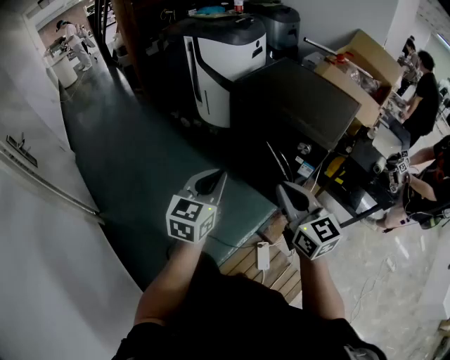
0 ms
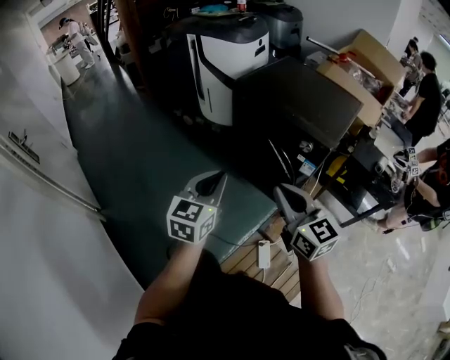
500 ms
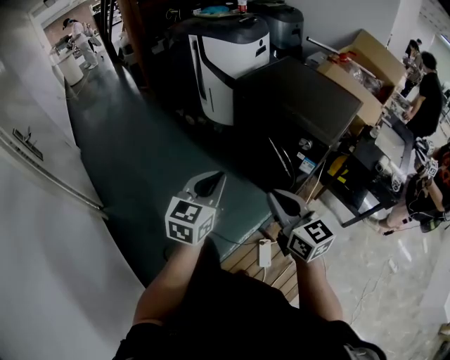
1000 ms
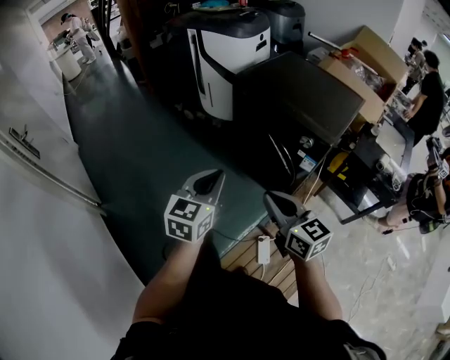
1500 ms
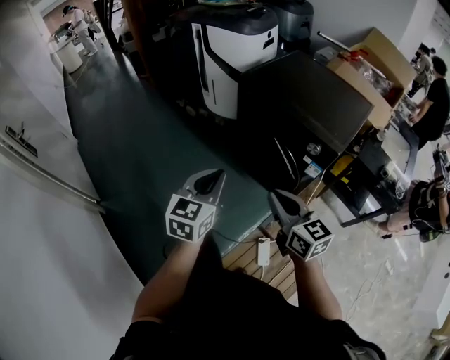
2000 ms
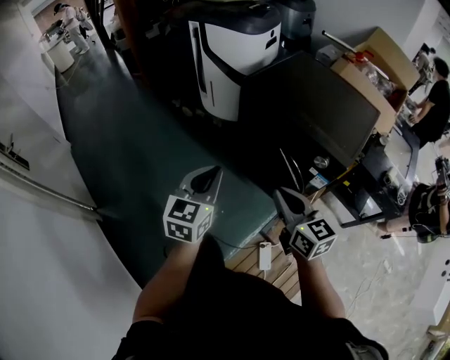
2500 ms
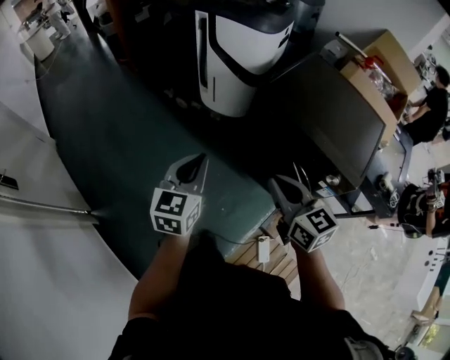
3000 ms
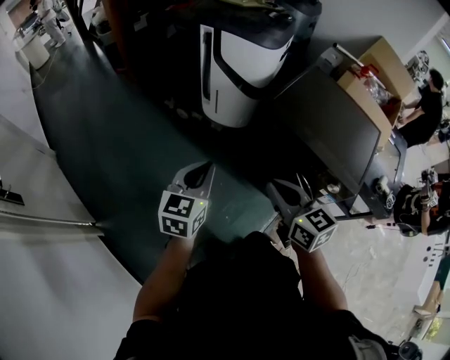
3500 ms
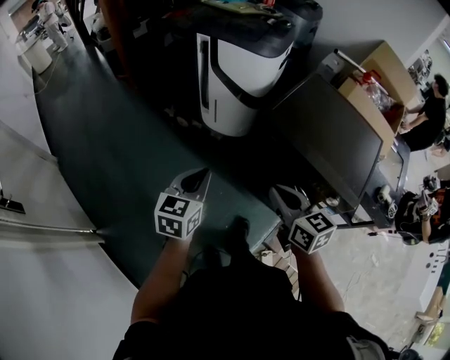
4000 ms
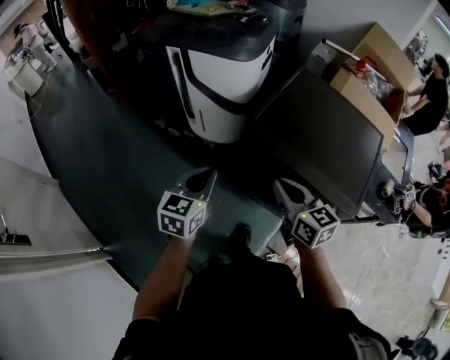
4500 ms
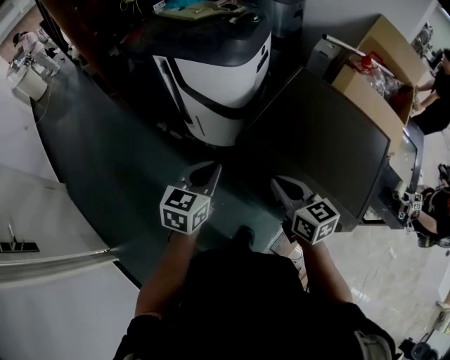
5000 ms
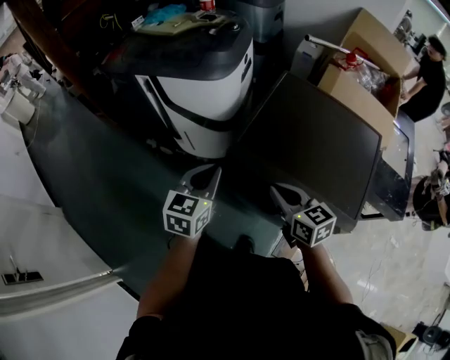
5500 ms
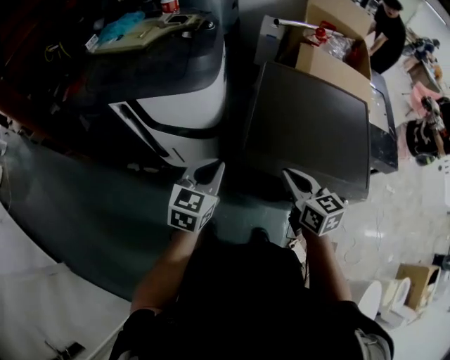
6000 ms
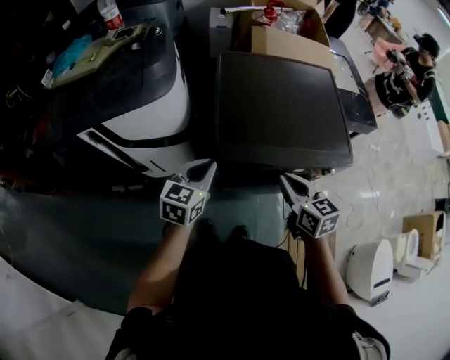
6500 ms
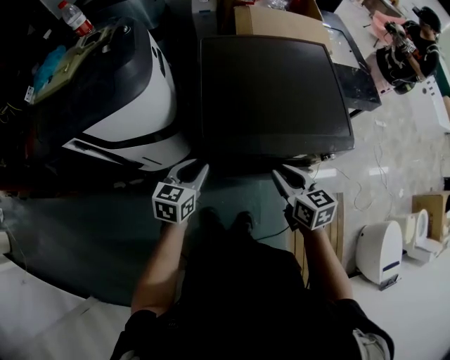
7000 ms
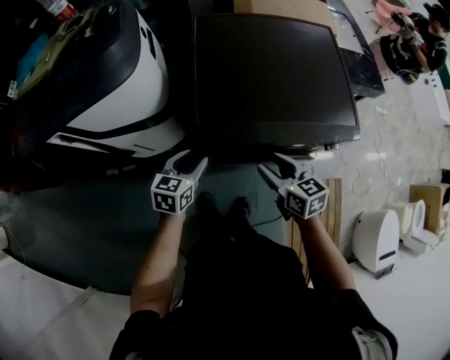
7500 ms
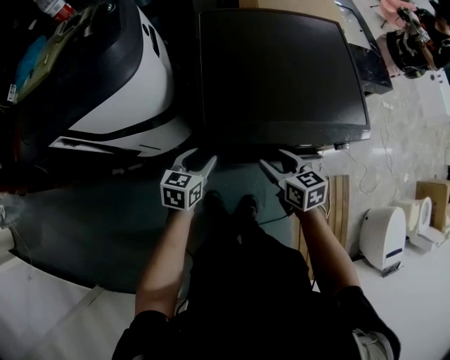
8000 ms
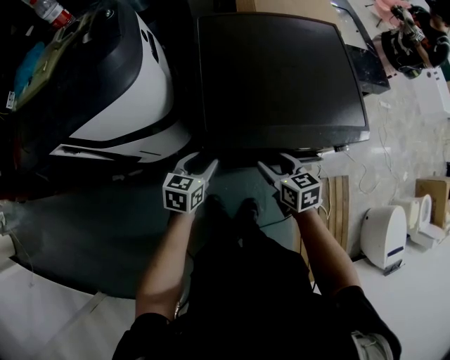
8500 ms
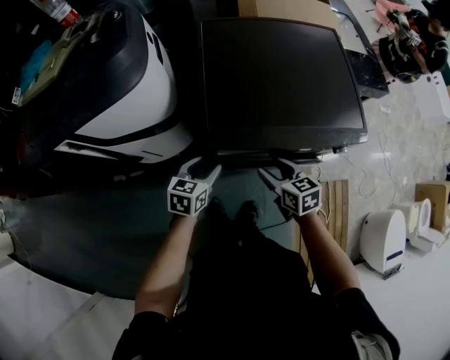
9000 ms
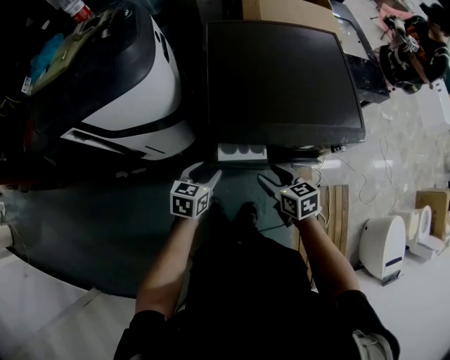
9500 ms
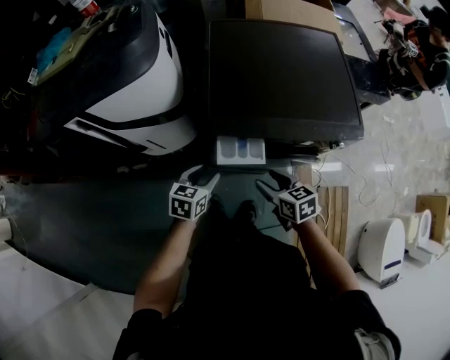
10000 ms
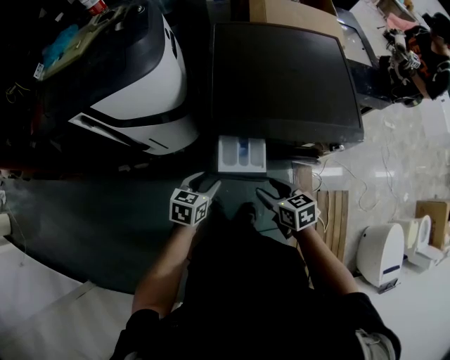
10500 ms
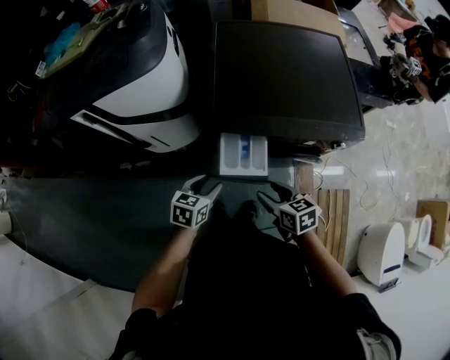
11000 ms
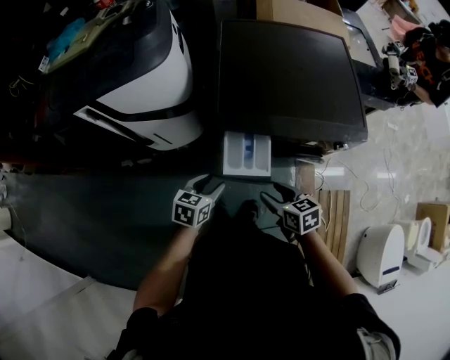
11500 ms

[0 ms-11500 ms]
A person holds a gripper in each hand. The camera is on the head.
0 ms to 2000 ms: The right gripper goes roughly 5 cm downward.
2000 ms to 4000 ms: Both grippers move forward and to the left, about 35 cm.
4000 ms to 6000 ms: The left gripper ends up some 35 cm from where it was, and rotates approximately 30 degrees. Meanwhile the right gripper changes place by about 30 cm, and changes its angle by some 30 degrees.
6000 ms to 7500 ms: The left gripper goes approximately 15 cm downward, turns by approximately 20 degrees, and opens. The right gripper is displaced downward and to the right by roughly 15 cm, and opens up.
7500 ms to 9500 ms: The left gripper ends up approximately 5 cm from where it was. The right gripper ends up some 5 cm from where it was.
9500 ms to 11500 ms: Both grippers move backward, about 10 cm.

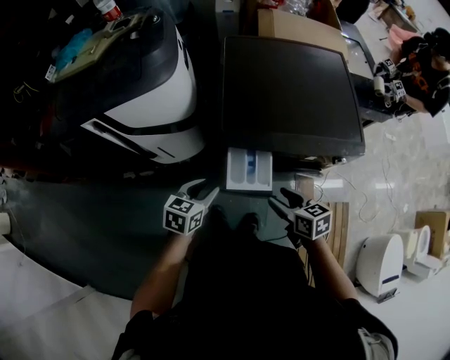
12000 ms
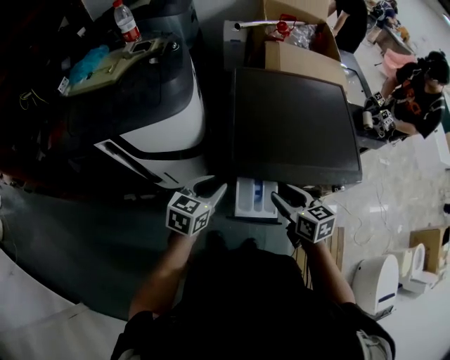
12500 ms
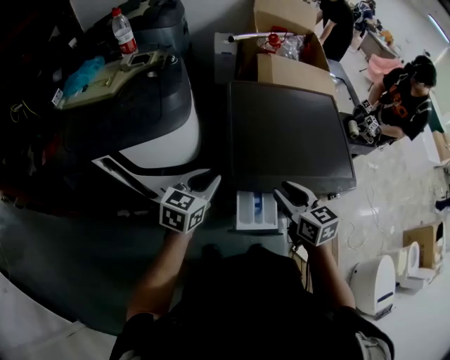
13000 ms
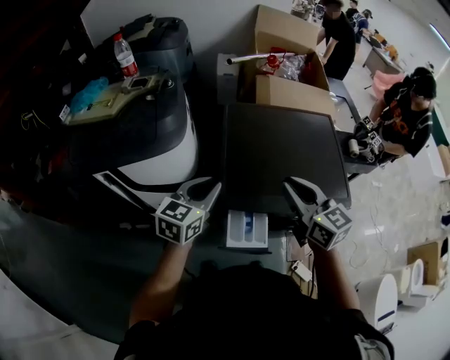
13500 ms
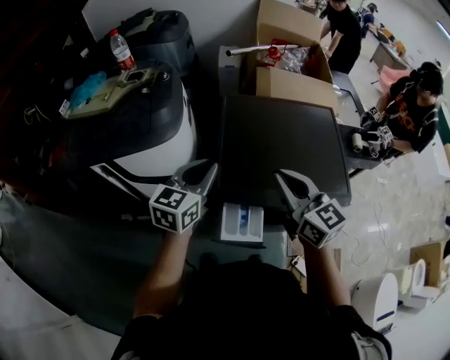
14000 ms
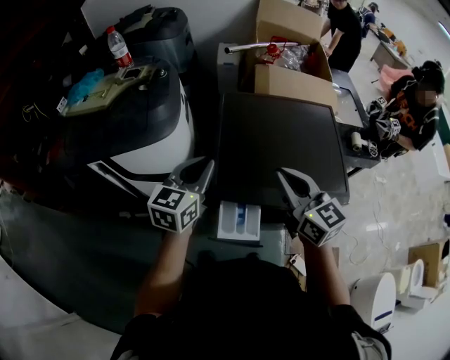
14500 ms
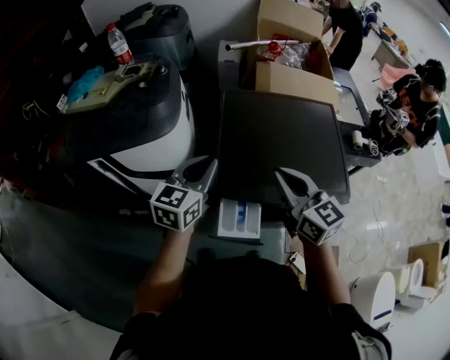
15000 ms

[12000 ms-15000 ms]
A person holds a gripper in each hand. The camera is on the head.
12000 ms to 13500 ms: Both grippers travel together upward and forward, approximately 30 cm. The right gripper swivels some 40 degrees, and closes up; the left gripper swivels about 20 degrees, and closes up.
13500 ms to 15000 ms: There are only small adjustments of the grippers.

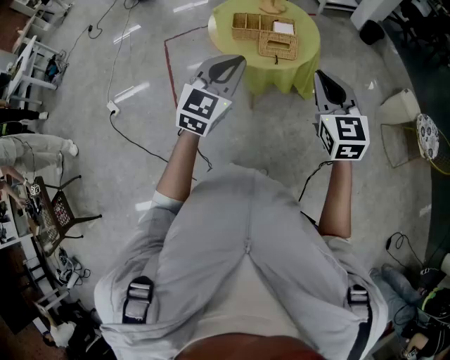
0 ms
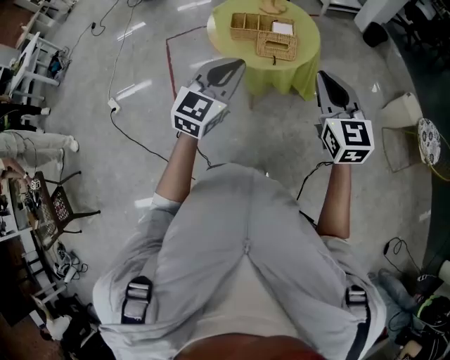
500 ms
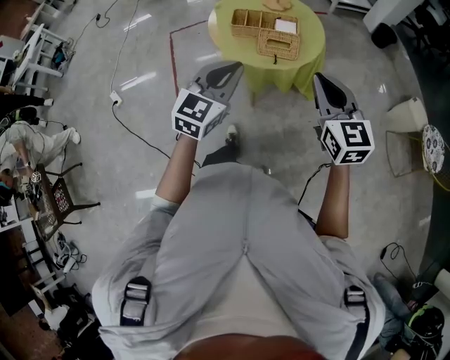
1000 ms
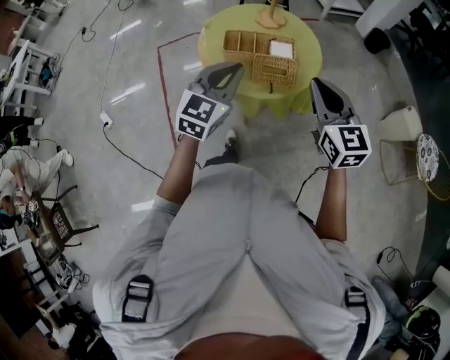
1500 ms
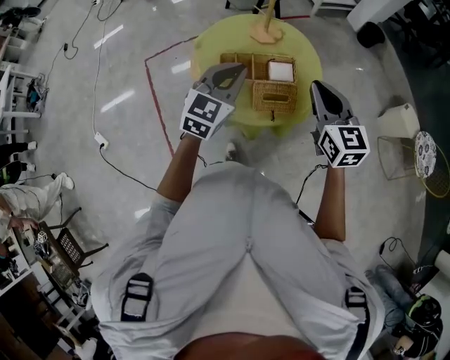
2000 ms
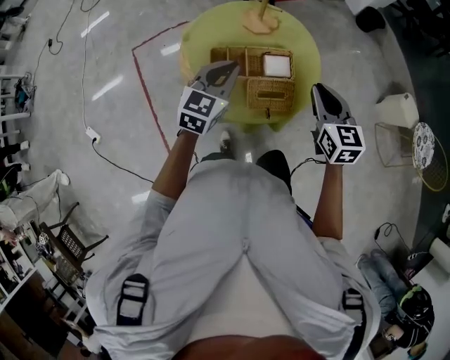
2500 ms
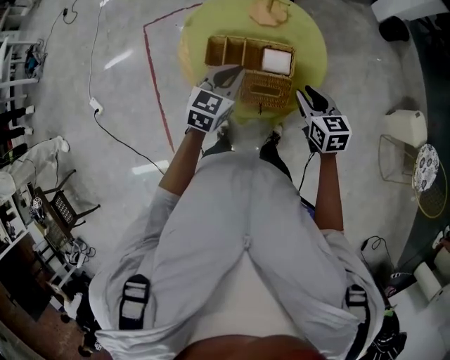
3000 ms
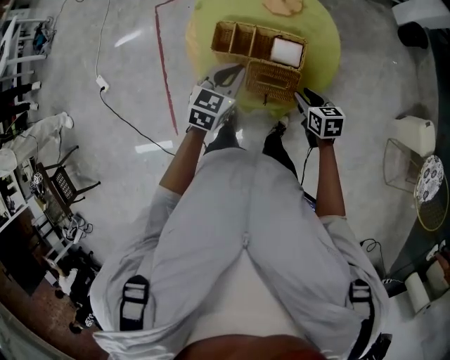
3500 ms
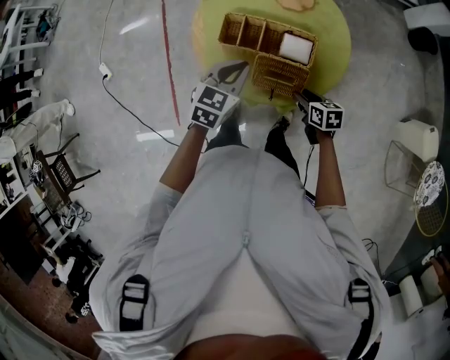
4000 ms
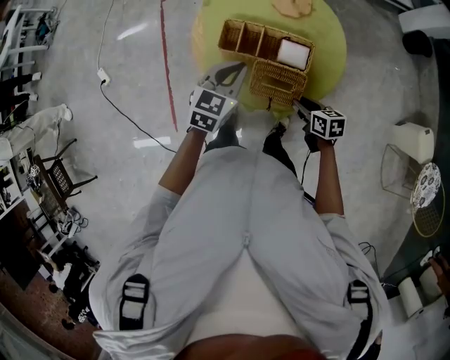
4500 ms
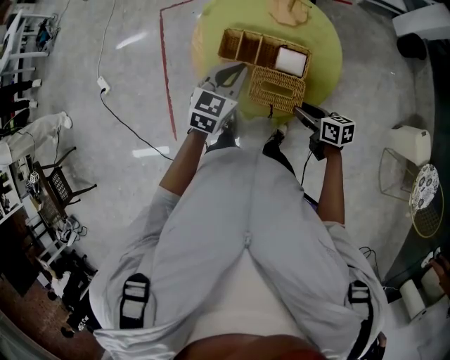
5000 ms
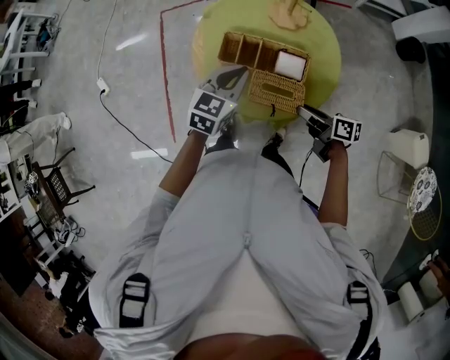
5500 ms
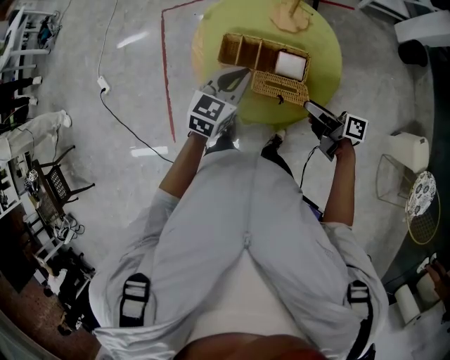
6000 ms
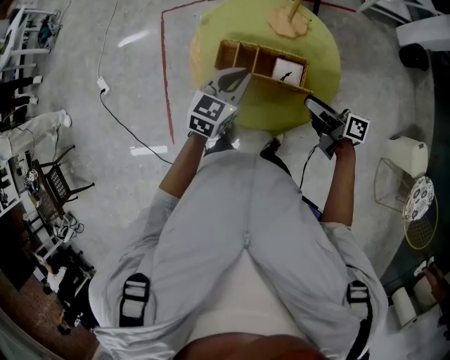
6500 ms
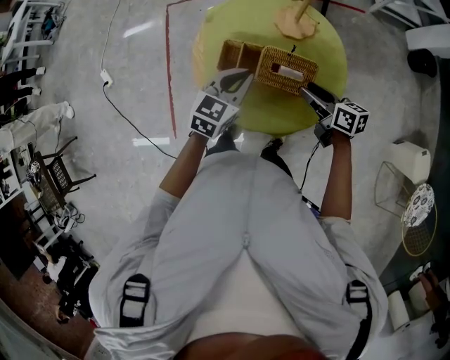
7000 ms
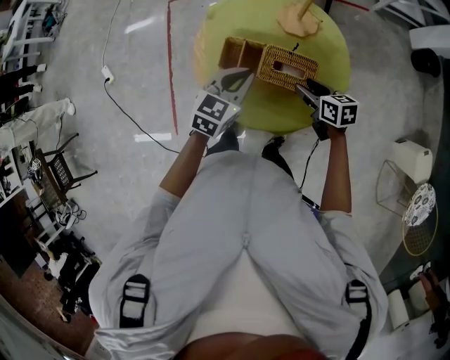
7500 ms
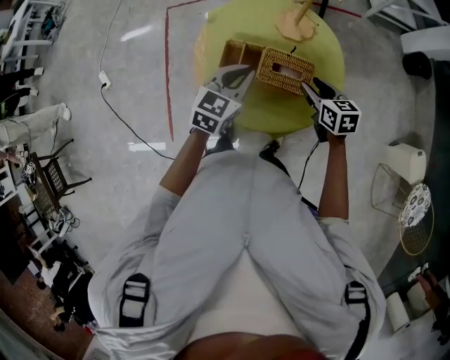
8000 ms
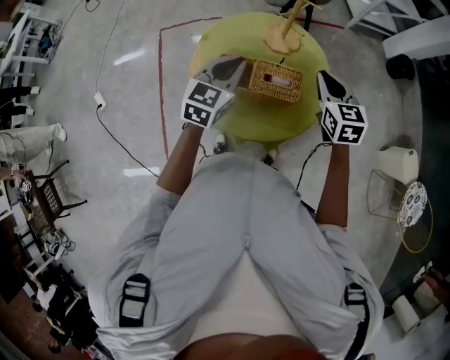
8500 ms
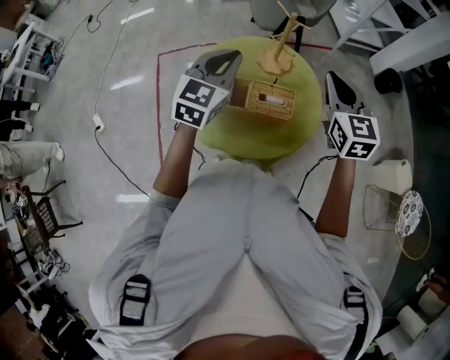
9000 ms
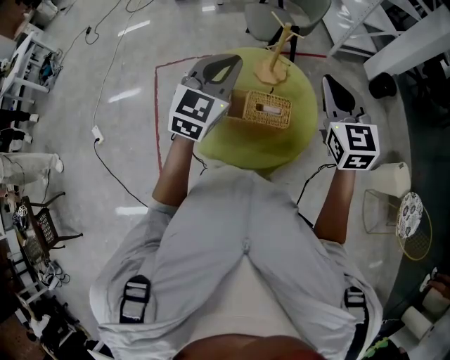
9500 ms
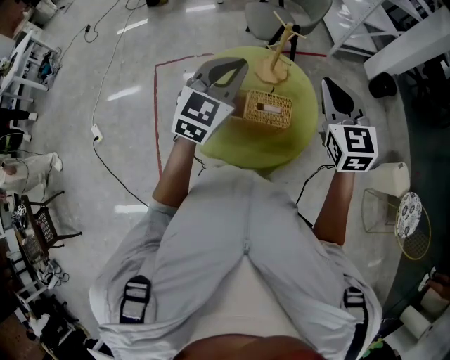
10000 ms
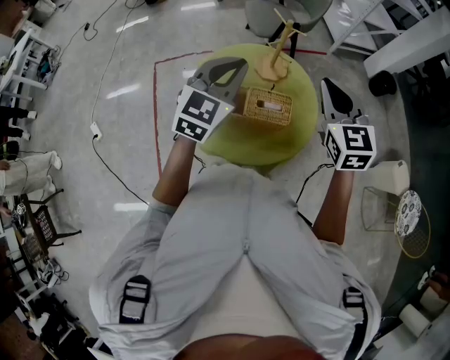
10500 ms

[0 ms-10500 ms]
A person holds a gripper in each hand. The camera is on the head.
0 ms to 2000 ms: The two grippers go about 30 cm forward.
2000 ms to 4000 ms: The left gripper travels downward by about 15 cm, and turns by some 30 degrees; the right gripper goes some 35 cm downward, angles its fingers downward, by some 30 degrees, and opens up.
4000 ms to 6500 ms: The right gripper heads upward and forward, covering about 20 cm, and tips its fingers upward by approximately 40 degrees. The left gripper moves forward, approximately 5 cm.
6500 ms to 8500 ms: The left gripper heads upward, covering approximately 5 cm; the right gripper is displaced upward and forward by some 15 cm, swivels roughly 70 degrees, and closes its fingers.
8500 ms to 10500 ms: Both grippers travel together upward, some 15 cm.

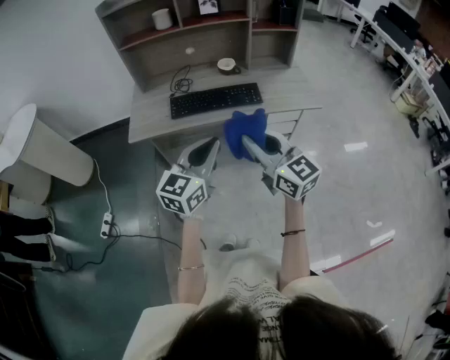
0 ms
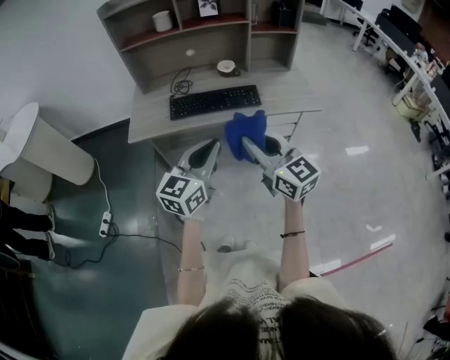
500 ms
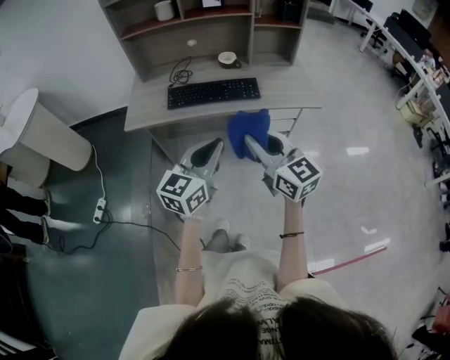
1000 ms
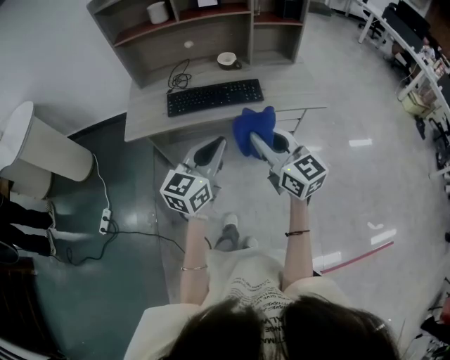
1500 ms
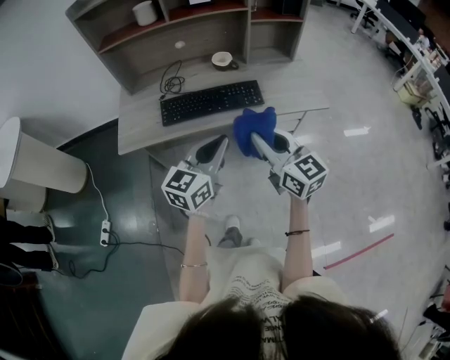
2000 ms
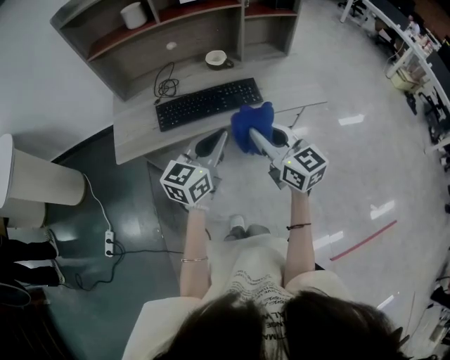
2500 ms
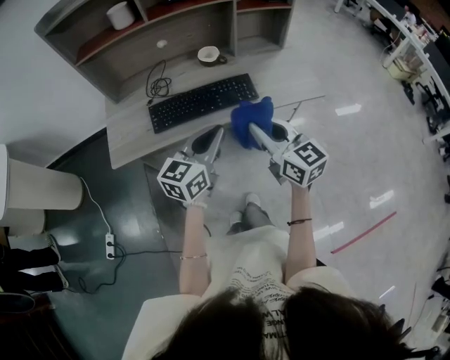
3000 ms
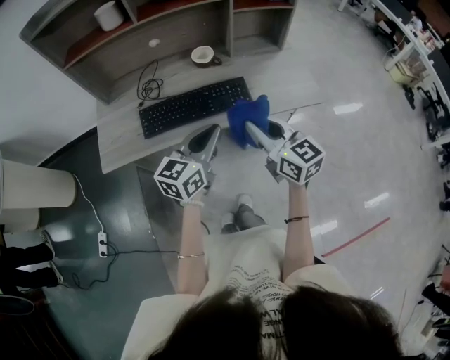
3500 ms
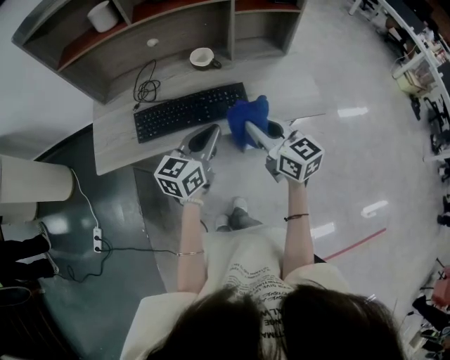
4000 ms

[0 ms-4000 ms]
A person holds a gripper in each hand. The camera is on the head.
0 ms to 2000 ms: Both grippers travel together forward, roughly 5 cm.
2000 ms to 4000 ms: The left gripper goes approximately 10 cm forward. The right gripper shifts some 15 cm forward and to the right.
